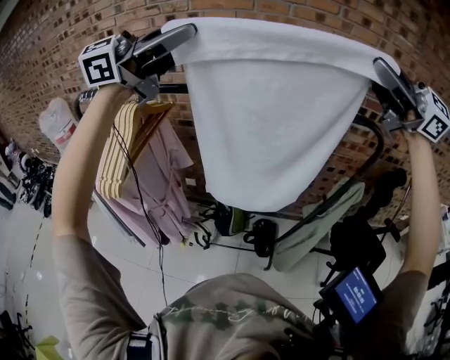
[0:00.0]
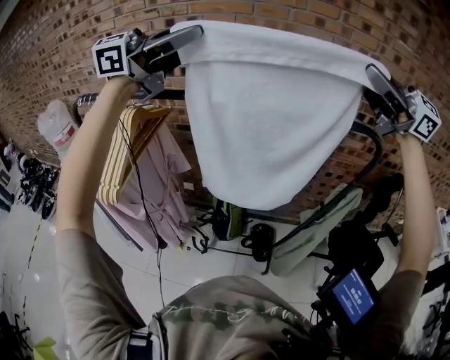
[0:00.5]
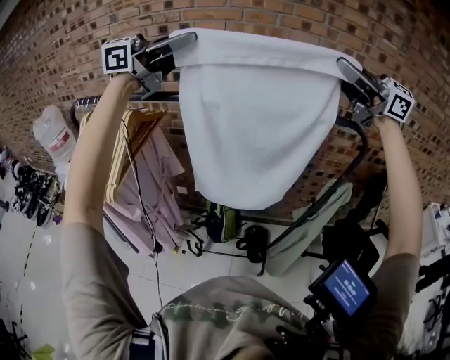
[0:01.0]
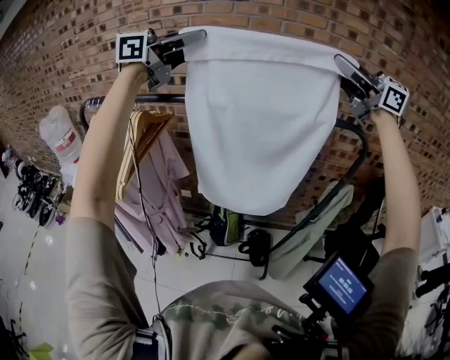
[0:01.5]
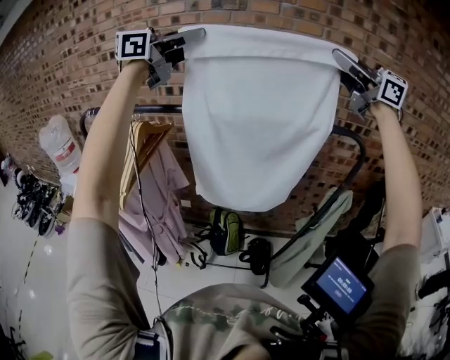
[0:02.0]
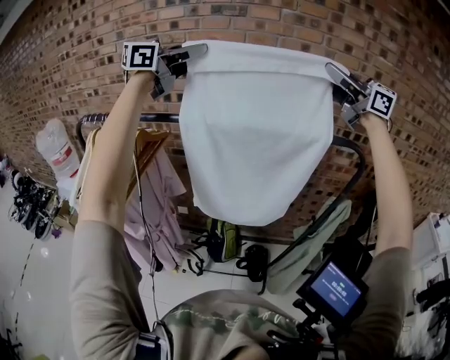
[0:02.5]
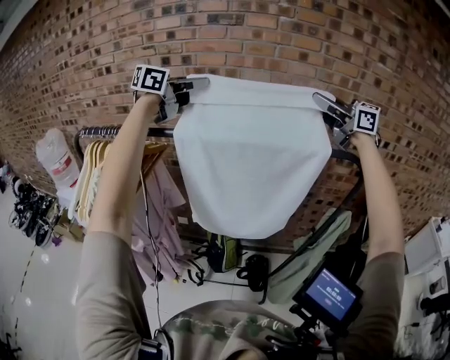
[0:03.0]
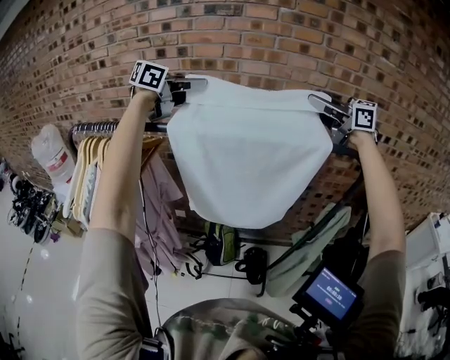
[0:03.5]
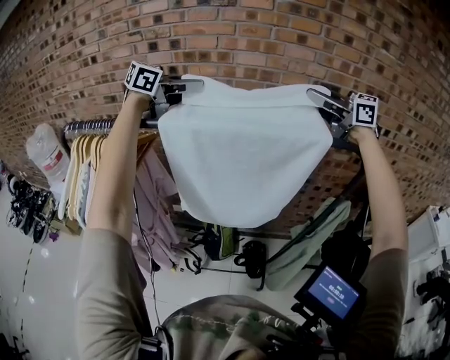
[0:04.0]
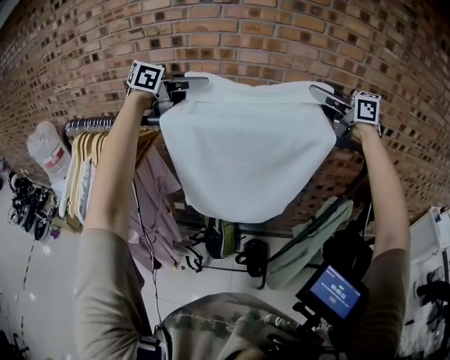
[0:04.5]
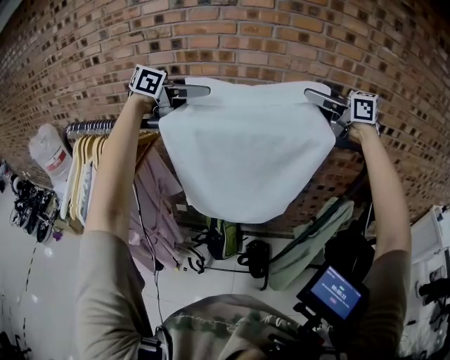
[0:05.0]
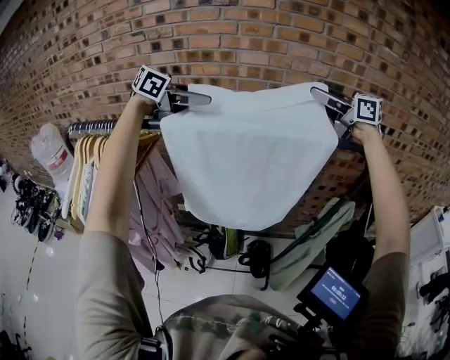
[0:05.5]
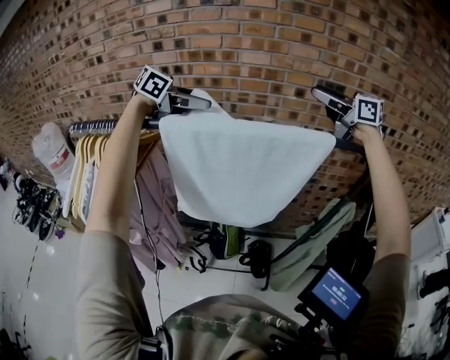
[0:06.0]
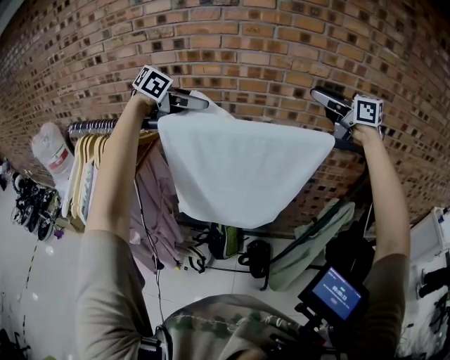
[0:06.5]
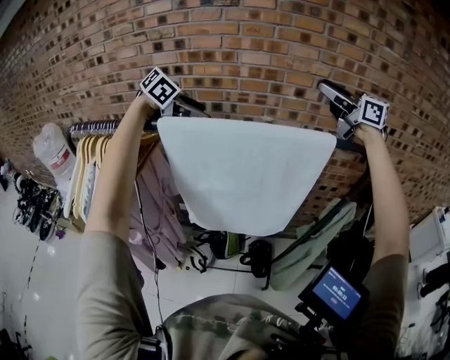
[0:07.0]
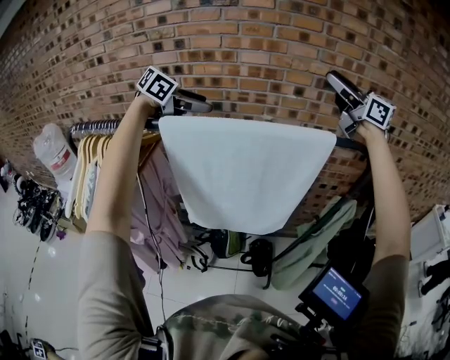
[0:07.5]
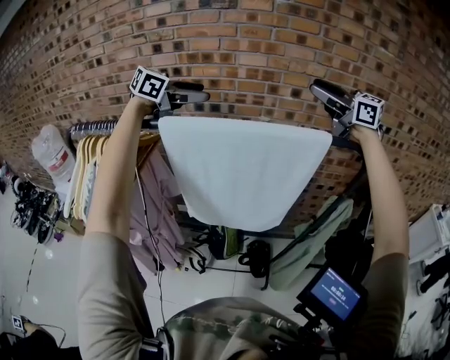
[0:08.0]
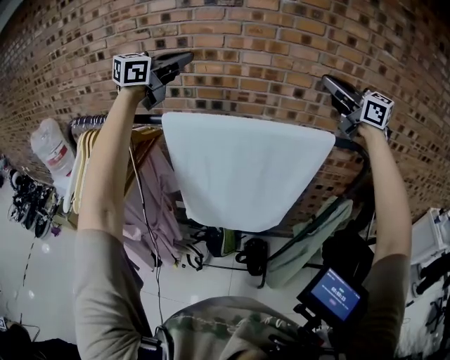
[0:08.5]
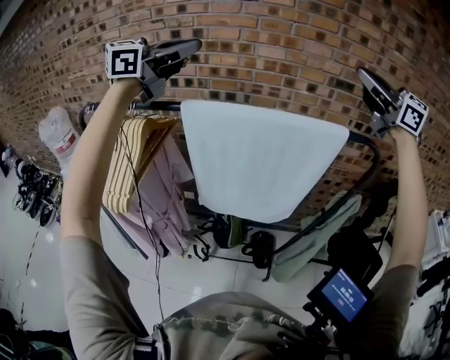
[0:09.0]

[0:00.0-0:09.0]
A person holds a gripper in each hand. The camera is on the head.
0:00.0 to 0:02.0: The right gripper moves roughly 10 cm. Meanwhile the left gripper moves about 10 cm.
0:02.0 to 0:04.5: Both grippers move downward, about 15 cm. The left gripper rotates roughly 20 degrees.
0:04.5 to 0:07.0: The left gripper moves downward, approximately 10 cm, changes its angle by approximately 30 degrees, and opens, while the right gripper opens up.
0:07.0 to 0:09.0: The right gripper moves roughly 15 cm, and closes its fingers. The left gripper moves upward, approximately 20 cm, angles its fingers upward, by roughly 40 degrees, and closes.

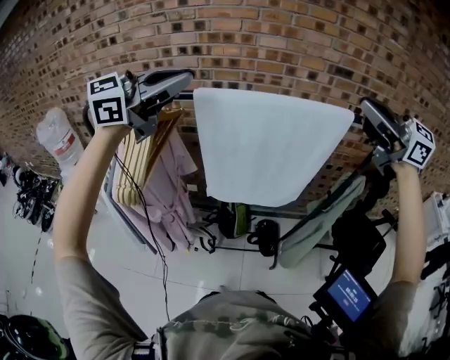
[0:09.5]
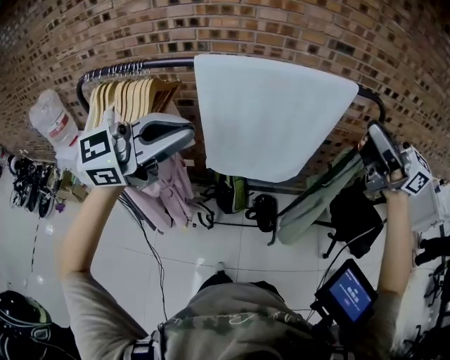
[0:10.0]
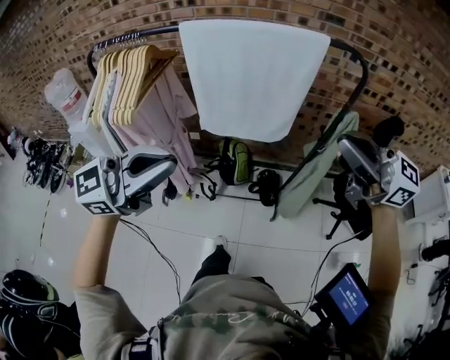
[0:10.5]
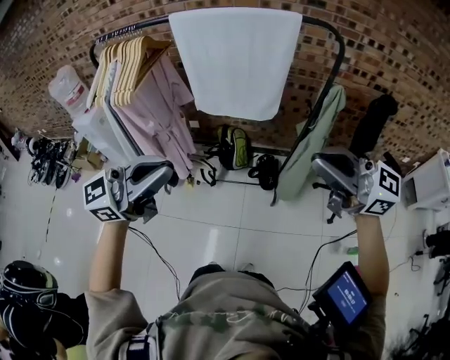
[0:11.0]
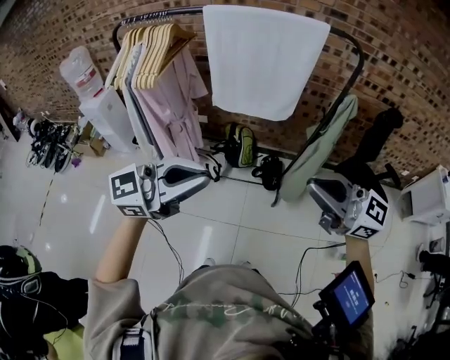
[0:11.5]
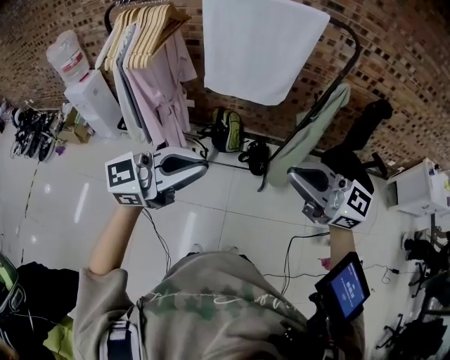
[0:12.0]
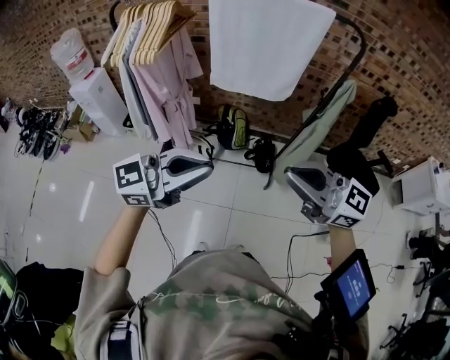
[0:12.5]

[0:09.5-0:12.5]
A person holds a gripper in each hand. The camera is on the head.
0:09.5 to 0:11.0: The right gripper moves about 40 cm, while the left gripper ends up roughly 50 cm from where it was.
0:11.0 to 0:12.5: The right gripper moves roughly 15 cm; the left gripper is displaced downward by roughly 5 cm.

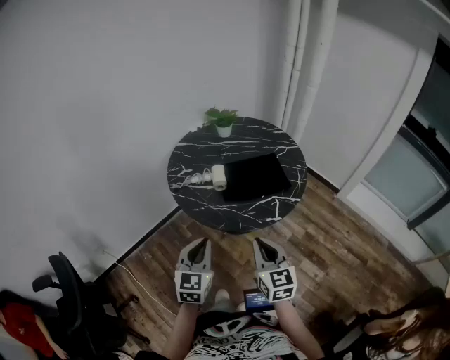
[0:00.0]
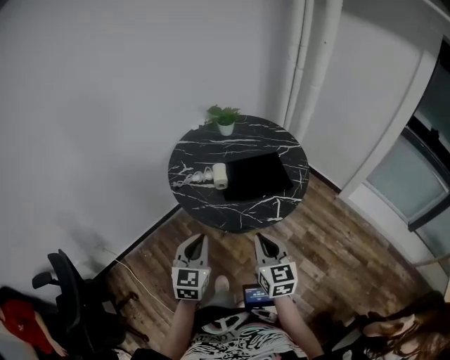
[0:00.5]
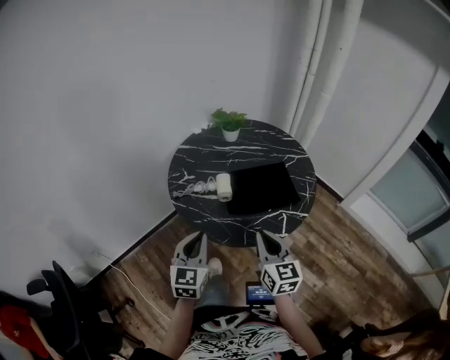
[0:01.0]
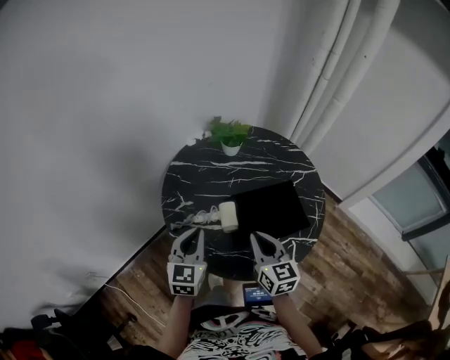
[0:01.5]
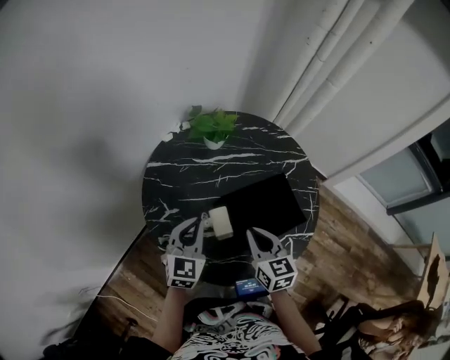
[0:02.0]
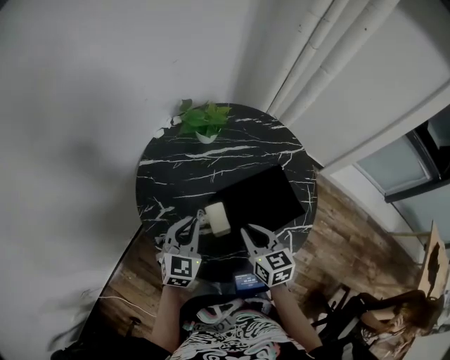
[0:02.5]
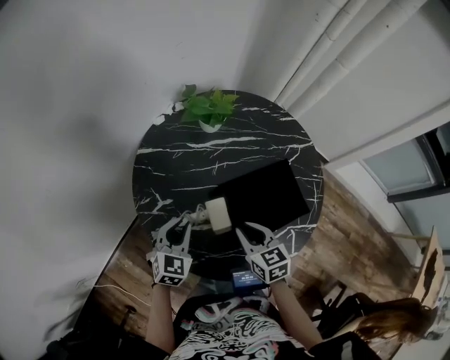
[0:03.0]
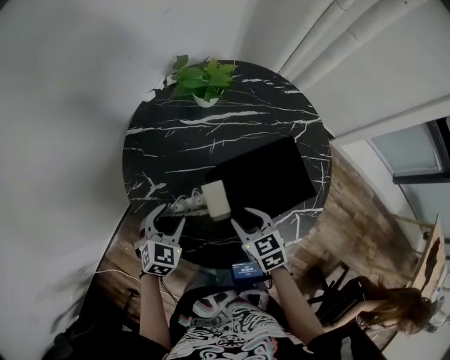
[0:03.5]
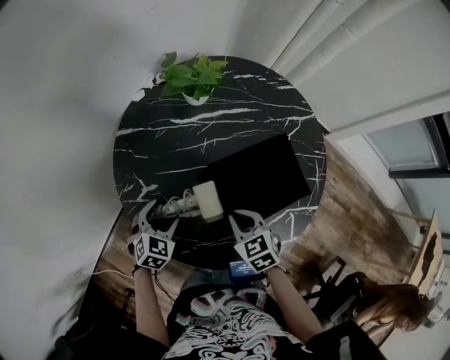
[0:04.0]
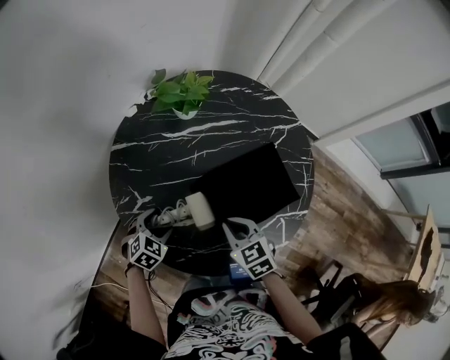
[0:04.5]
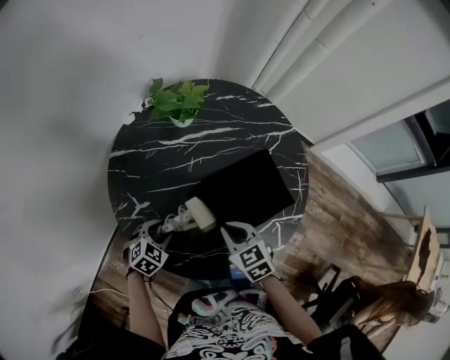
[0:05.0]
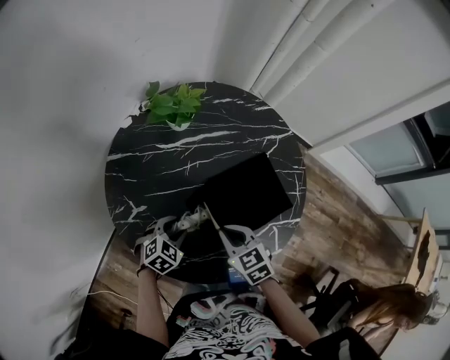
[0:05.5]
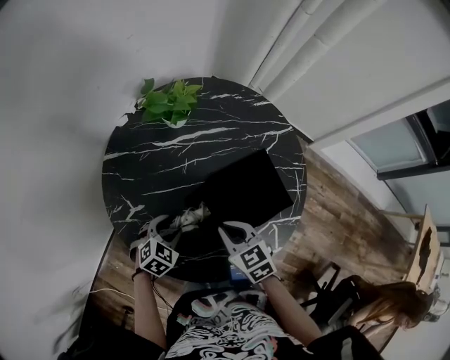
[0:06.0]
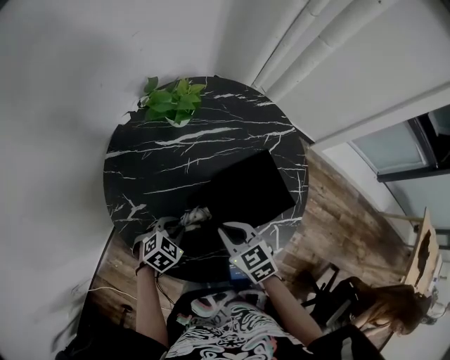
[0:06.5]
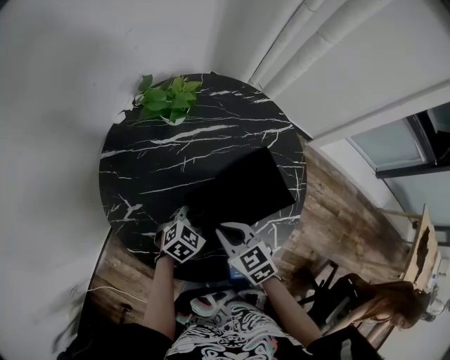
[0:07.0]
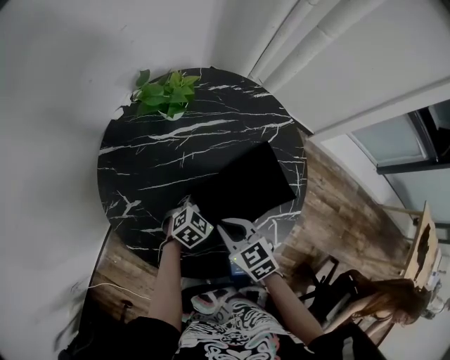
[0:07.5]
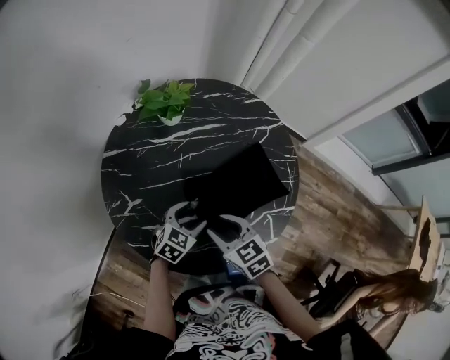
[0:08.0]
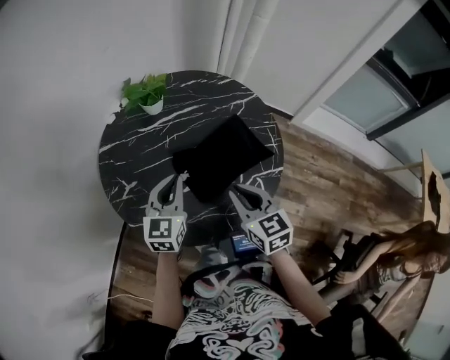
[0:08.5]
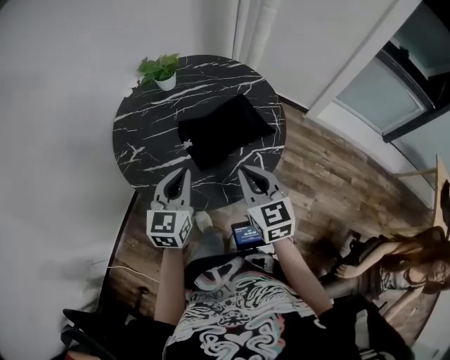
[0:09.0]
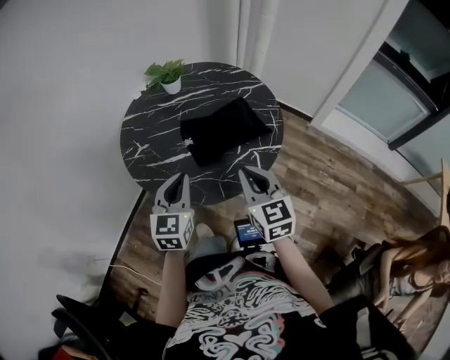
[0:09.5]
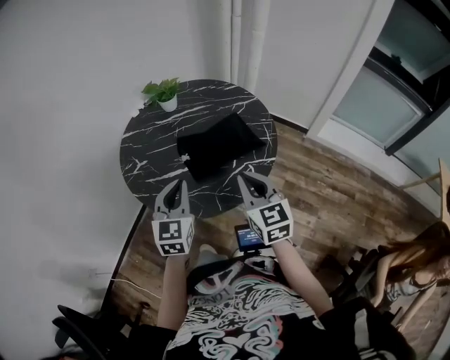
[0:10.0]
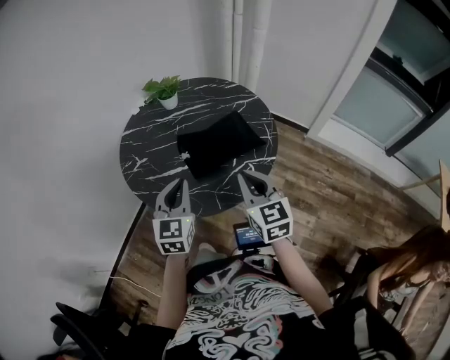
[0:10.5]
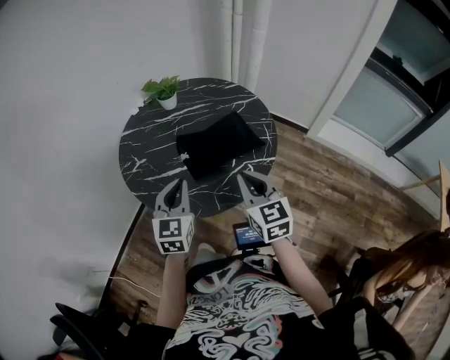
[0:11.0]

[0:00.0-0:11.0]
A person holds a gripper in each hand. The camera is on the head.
0:00.0 to 0:02.0: Both grippers move forward, about 40 cm.
0:02.0 to 0:03.5: The grippers both shift downward by roughly 15 cm. The right gripper turns by about 20 degrees, and opens. Meanwhile the left gripper swivels roughly 30 degrees, and opens up.
0:03.5 to 0:05.5: The left gripper shifts roughly 10 cm to the right, and changes its angle by roughly 20 degrees, while the right gripper closes.
0:05.5 to 0:07.5: The left gripper shifts roughly 15 cm to the right and forward.
0:07.5 to 0:09.0: The right gripper shifts roughly 25 cm upward, backward and to the right, changes its angle by approximately 30 degrees, and opens, then closes again; the left gripper heads upward and backward, covering roughly 30 cm, angles its fingers upward, by approximately 30 degrees, and opens, then closes again.
0:09.0 to 0:11.0: The left gripper changes place by roughly 5 cm. Meanwhile the right gripper moves some 5 cm.

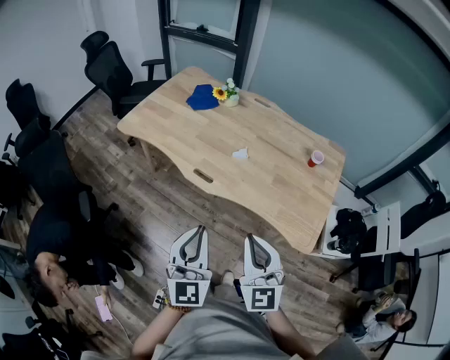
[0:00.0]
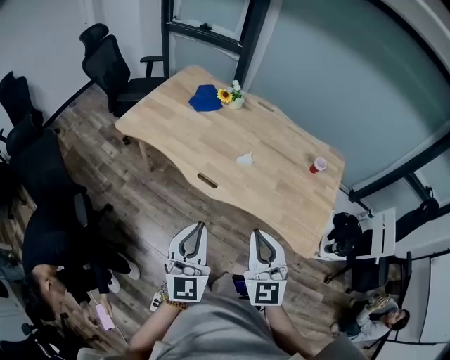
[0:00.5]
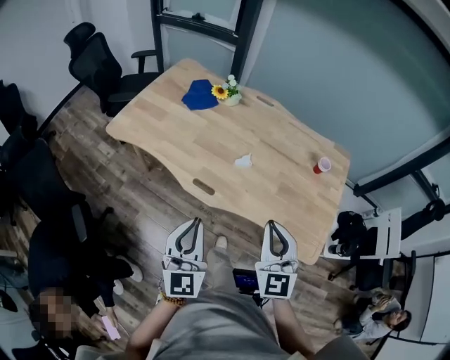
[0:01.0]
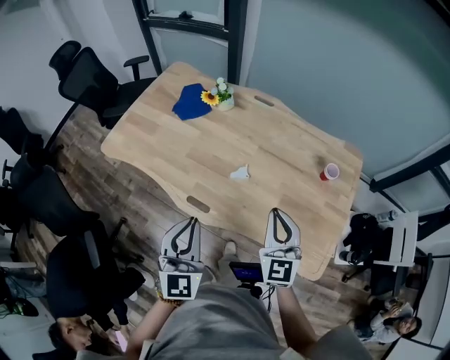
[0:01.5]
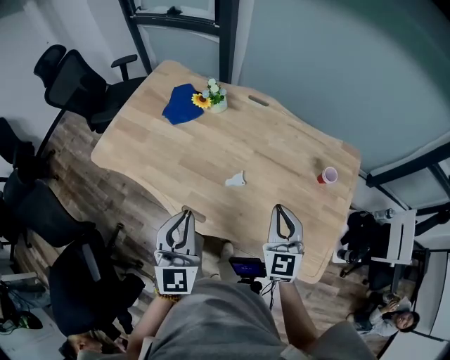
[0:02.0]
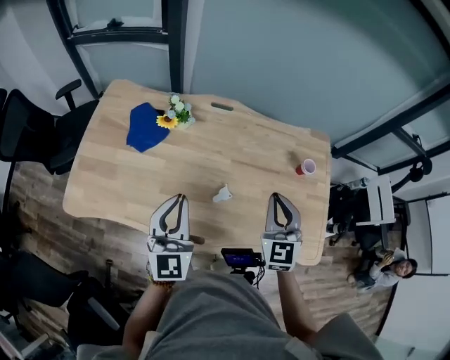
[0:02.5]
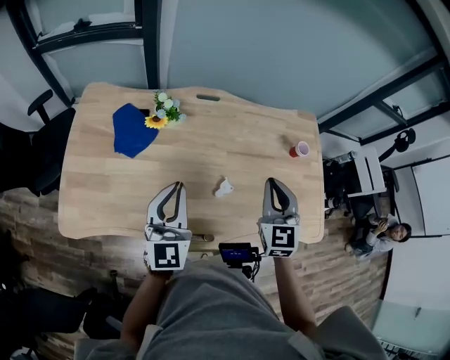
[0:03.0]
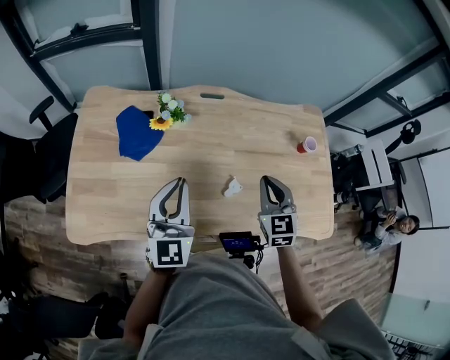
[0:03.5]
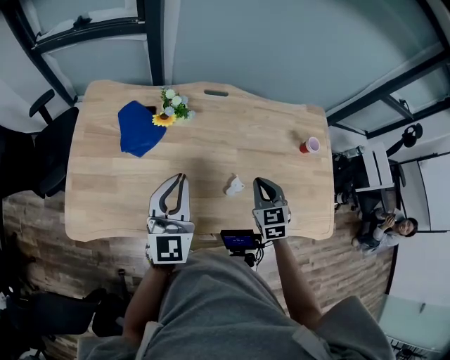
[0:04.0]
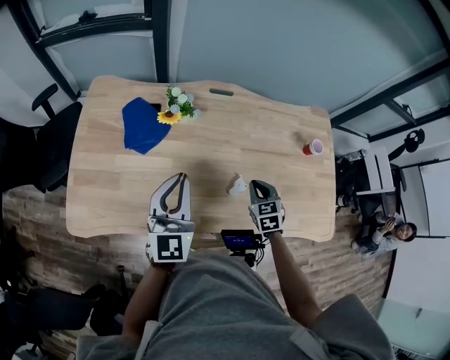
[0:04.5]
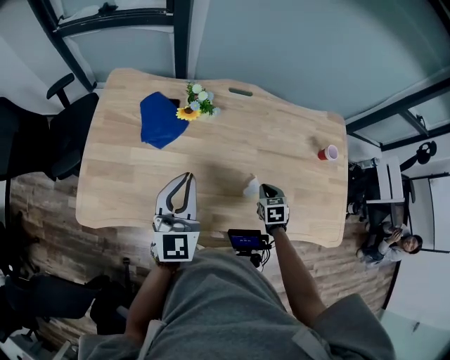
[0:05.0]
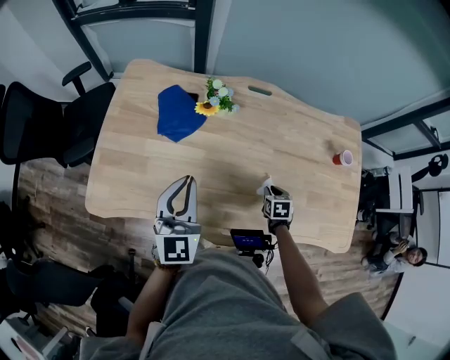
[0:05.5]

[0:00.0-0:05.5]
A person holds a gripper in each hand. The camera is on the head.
0:00.0 to 0:02.0: Both grippers move forward, some 30 cm. The right gripper turns by about 20 degrees.
0:02.0 to 0:03.5: The left gripper shifts by some 25 cm, and rotates roughly 30 degrees. Meanwhile the right gripper changes place by about 15 cm, and changes its angle by roughly 20 degrees.
0:03.5 to 0:05.5: The right gripper is displaced downward by some 25 cm, and points its fingers some 40 degrees further downward. Meanwhile the left gripper goes roughly 10 cm to the left.
